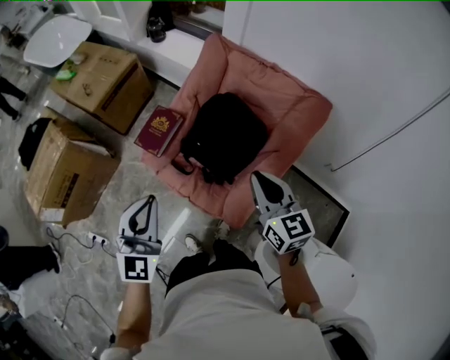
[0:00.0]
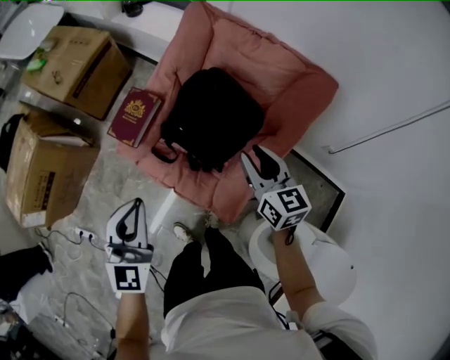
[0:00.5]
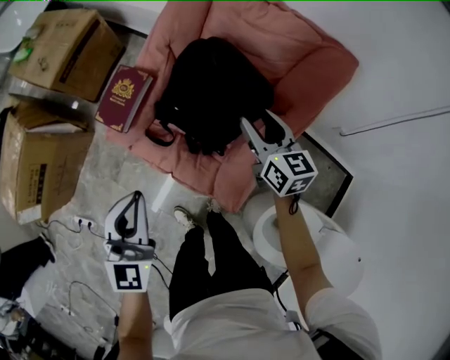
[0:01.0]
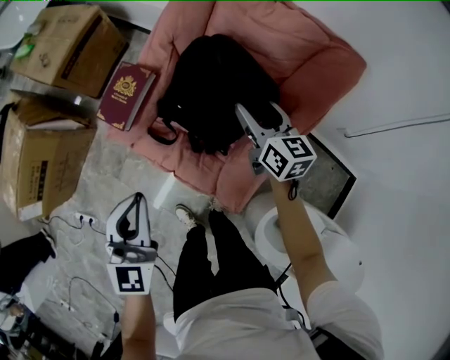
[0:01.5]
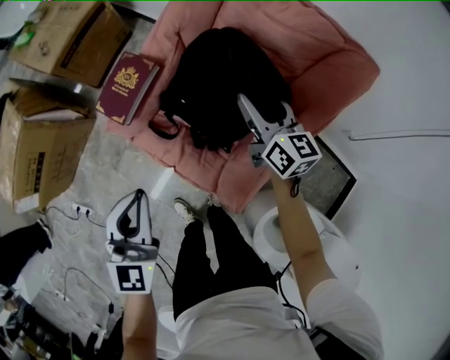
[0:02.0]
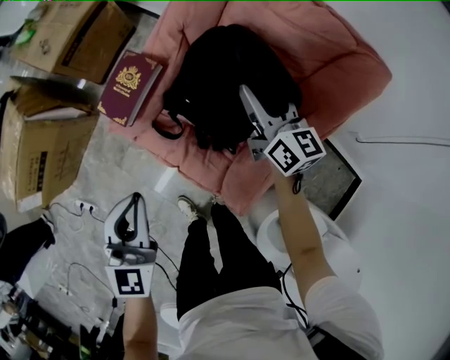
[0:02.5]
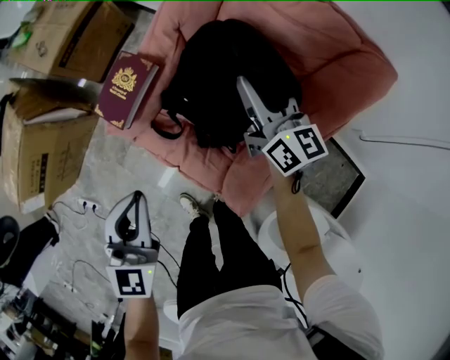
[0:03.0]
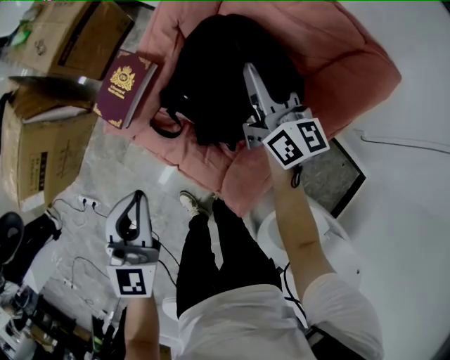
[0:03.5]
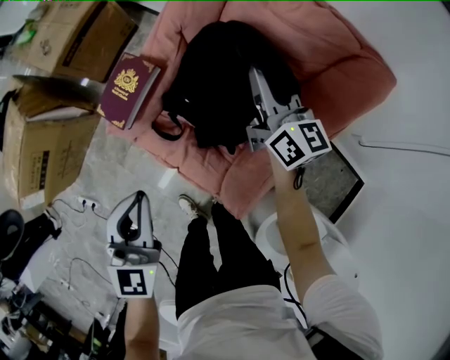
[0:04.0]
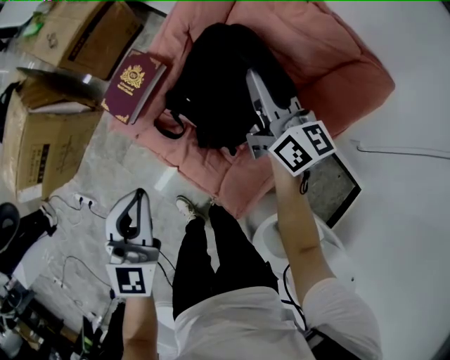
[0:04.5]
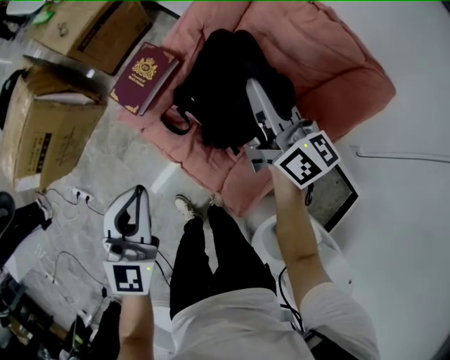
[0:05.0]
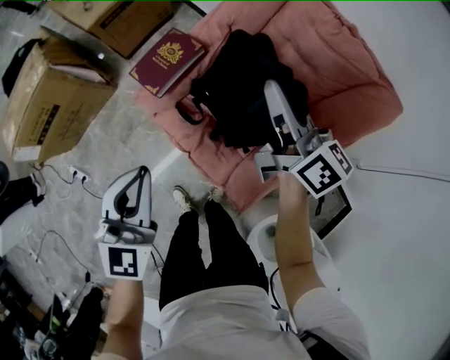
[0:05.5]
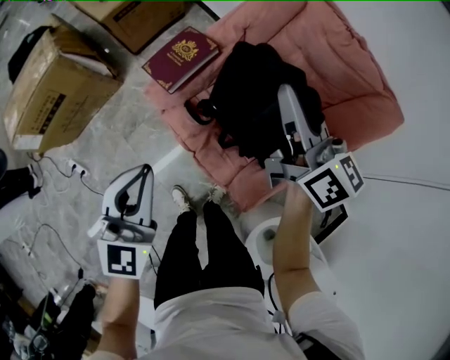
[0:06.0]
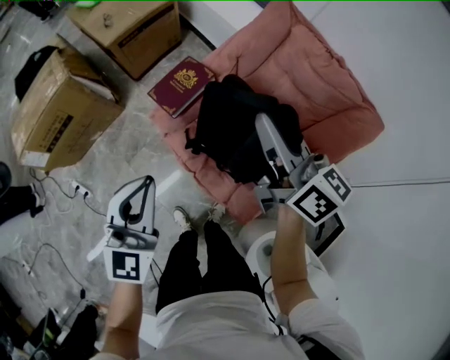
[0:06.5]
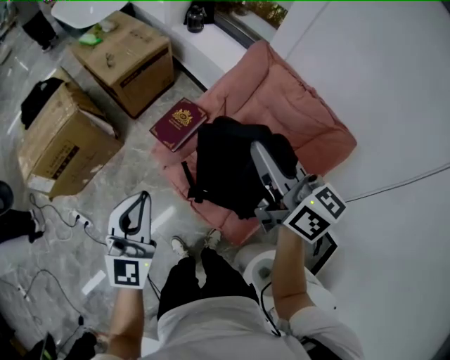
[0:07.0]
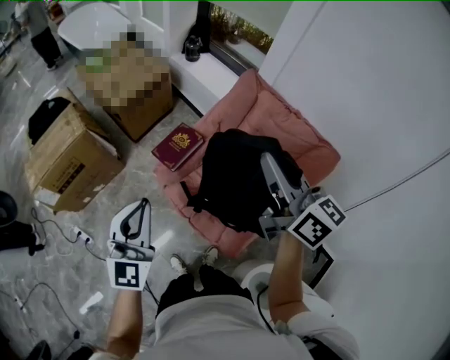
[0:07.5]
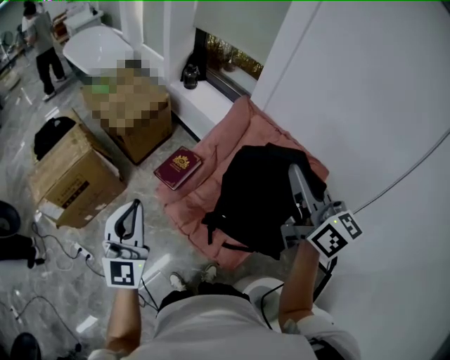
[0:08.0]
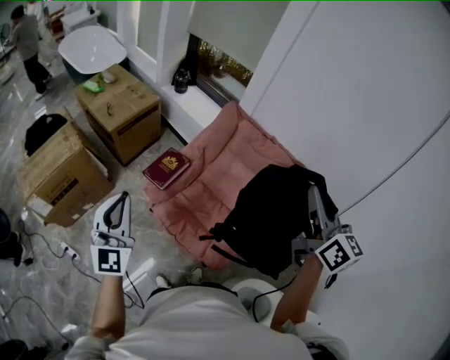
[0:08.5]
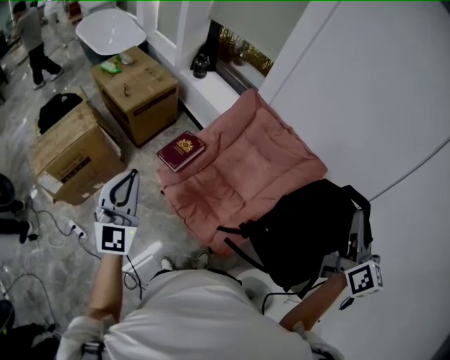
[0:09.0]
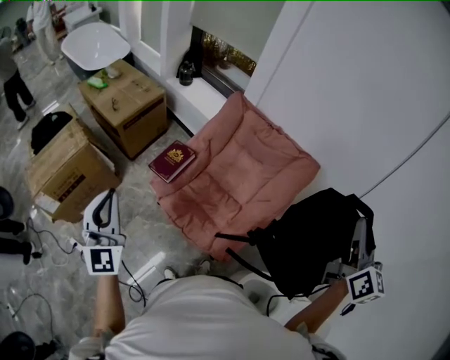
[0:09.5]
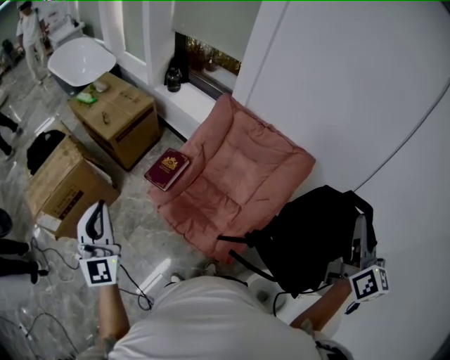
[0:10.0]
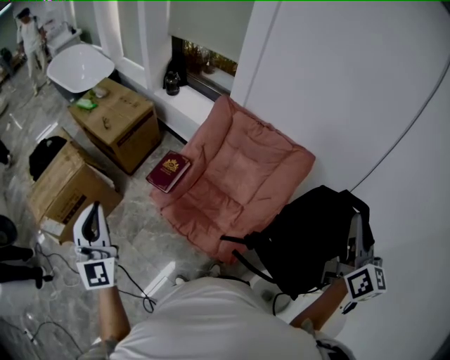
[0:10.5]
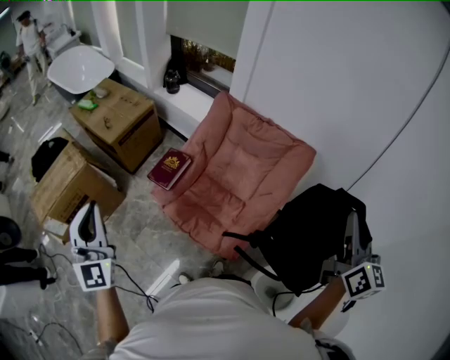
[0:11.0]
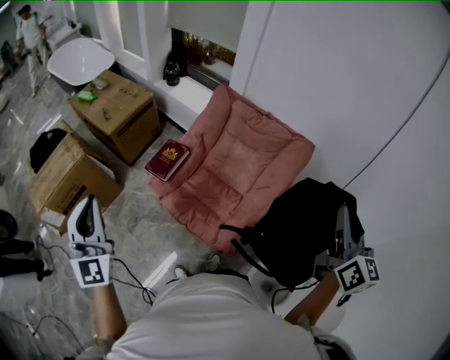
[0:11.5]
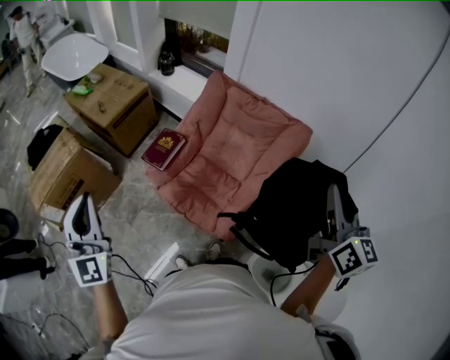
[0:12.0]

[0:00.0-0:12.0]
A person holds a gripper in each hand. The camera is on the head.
0:00.0 to 0:02.0: The right gripper travels downward and forward by some 30 cm, and opens its fingers. The left gripper moves downward, about 15 cm.
0:02.0 to 0:04.0: The right gripper shifts roughly 5 cm forward, and closes its fingers.
0:04.0 to 0:06.0: The left gripper heads to the left and backward, covering about 10 cm. Meanwhile the right gripper travels to the left, upward and backward by about 20 cm.
0:06.0 to 0:08.0: The right gripper heads upward and backward, covering approximately 35 cm. Meanwhile the left gripper goes some 20 cm upward, and swivels about 20 degrees.
0:08.0 to 0:10.0: The left gripper shifts some 5 cm to the left. The right gripper moves to the right and backward, about 25 cm, and changes its angle by roughly 40 degrees.
0:10.0 to 0:12.0: The right gripper ends up roughly 5 cm from where it was. The left gripper shifts by some 5 cm.

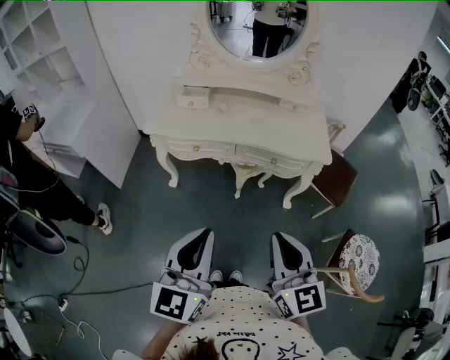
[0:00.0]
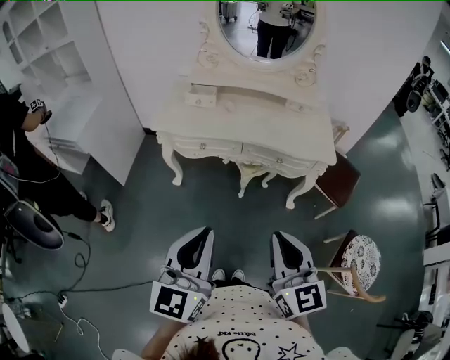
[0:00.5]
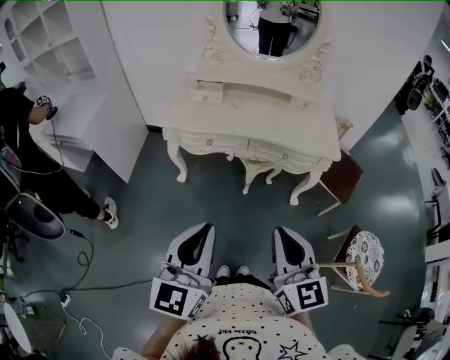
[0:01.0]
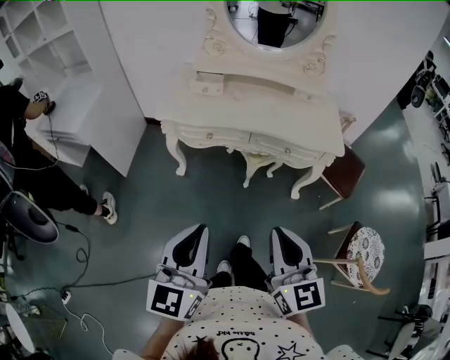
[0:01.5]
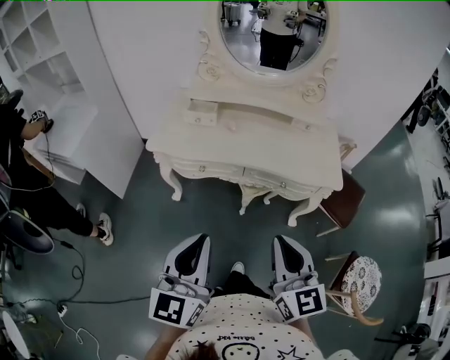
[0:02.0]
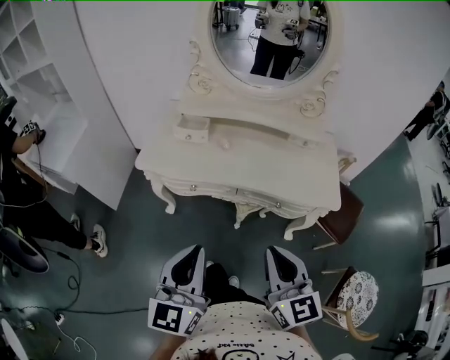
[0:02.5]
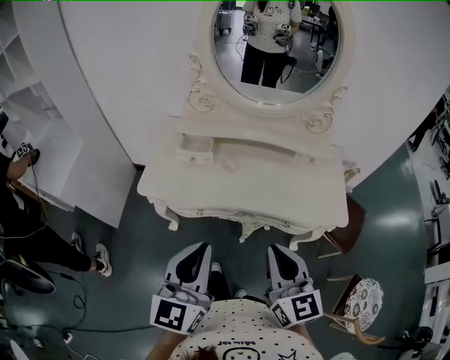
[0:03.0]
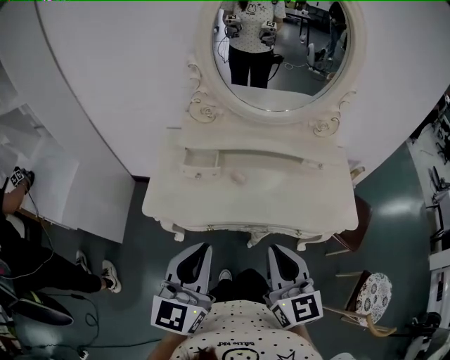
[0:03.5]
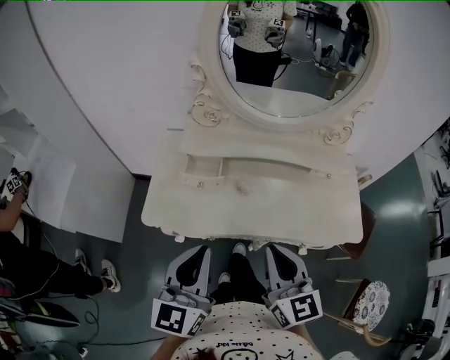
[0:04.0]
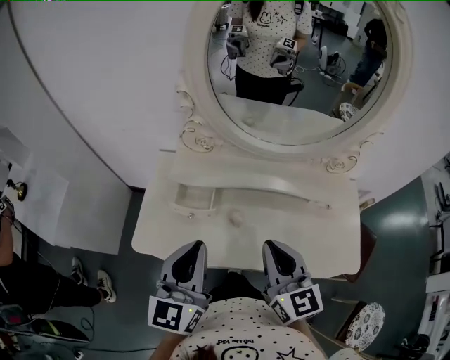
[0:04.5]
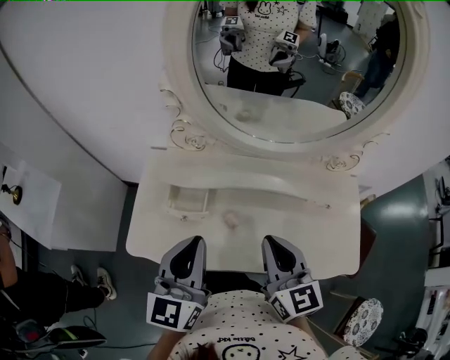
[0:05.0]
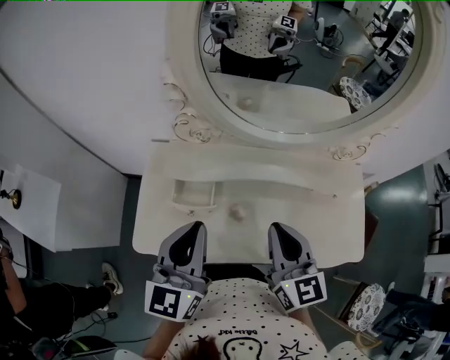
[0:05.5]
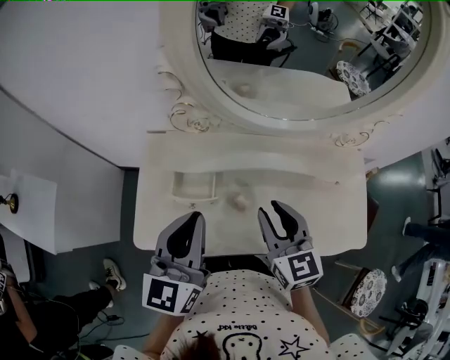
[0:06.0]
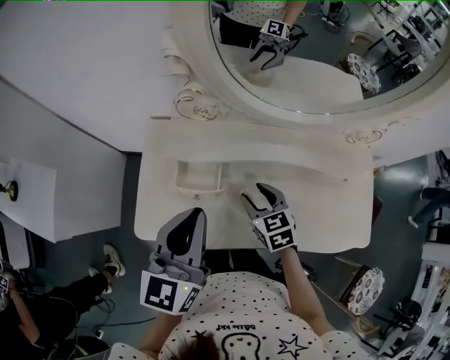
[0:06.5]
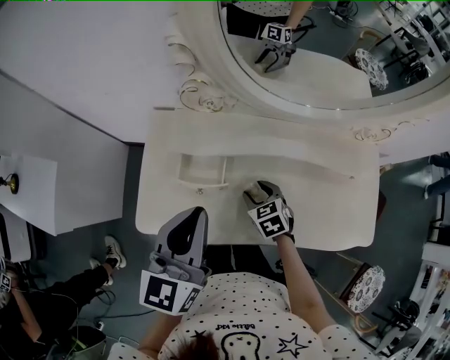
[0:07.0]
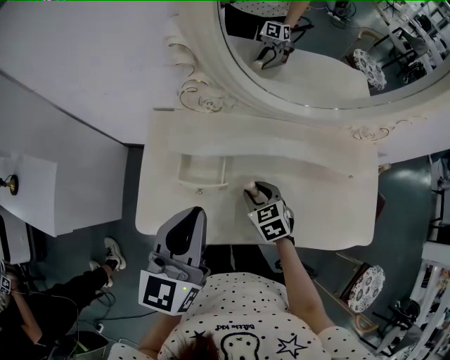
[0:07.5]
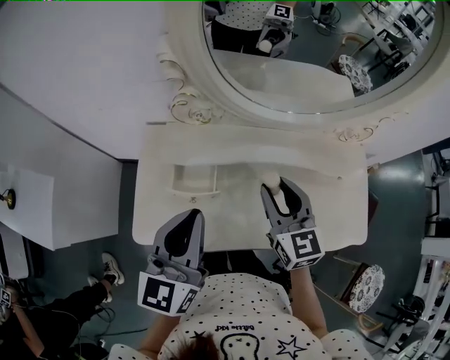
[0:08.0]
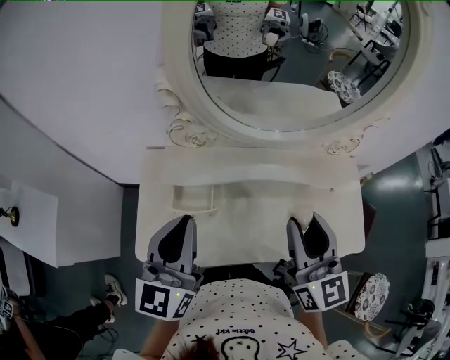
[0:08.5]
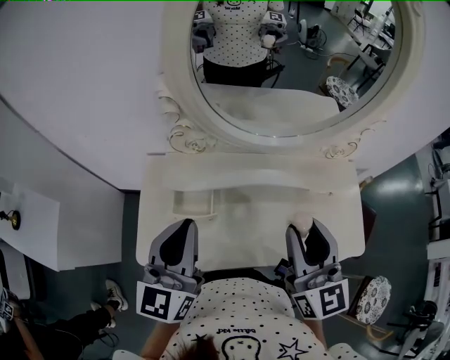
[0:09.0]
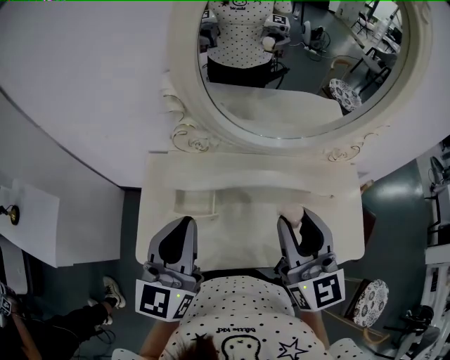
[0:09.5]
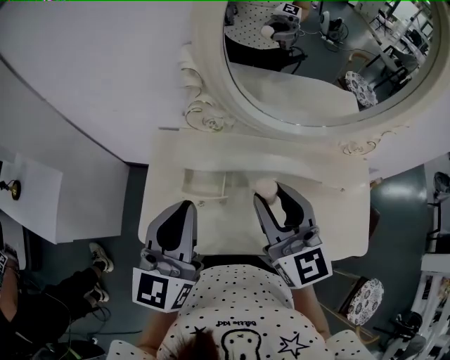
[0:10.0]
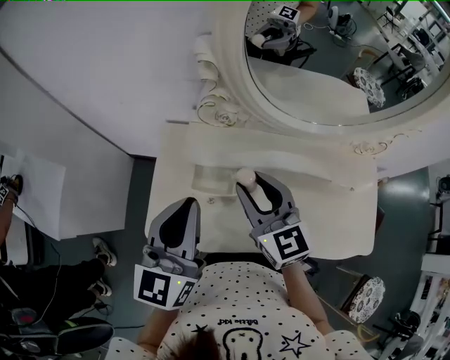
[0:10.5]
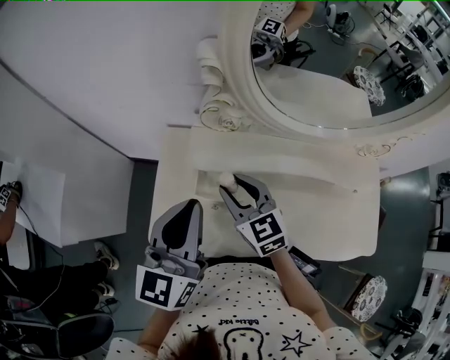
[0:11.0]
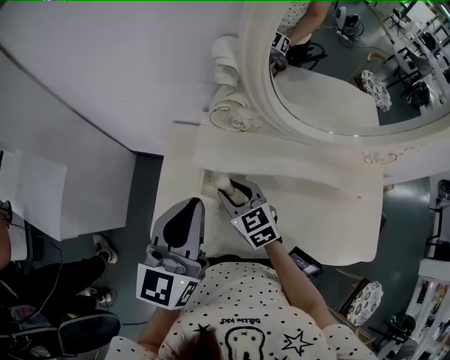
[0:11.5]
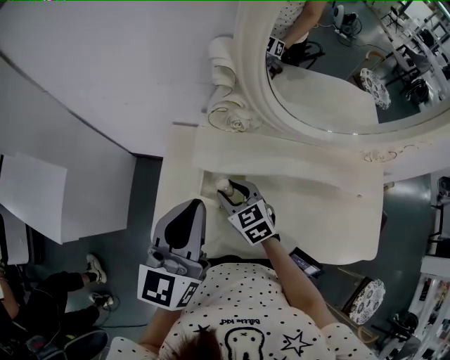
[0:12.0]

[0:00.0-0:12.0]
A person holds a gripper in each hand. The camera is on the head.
0:00.0 to 0:02.0: Both grippers move forward, approximately 10 cm.
0:02.0 to 0:04.0: Both grippers travel together forward, roughly 30 cm.
0:04.0 to 0:06.0: Both grippers move forward, roughly 20 cm. The right gripper opens up.
0:06.0 to 0:08.0: The right gripper travels downward and back again, some 25 cm each way.
0:08.0 to 0:10.0: The right gripper is displaced upward and to the left by about 10 cm.
0:10.0 to 0:12.0: The left gripper moves roughly 5 cm; the right gripper is displaced downward and to the left by some 25 cm, and tilts its fingers roughly 30 degrees downward.

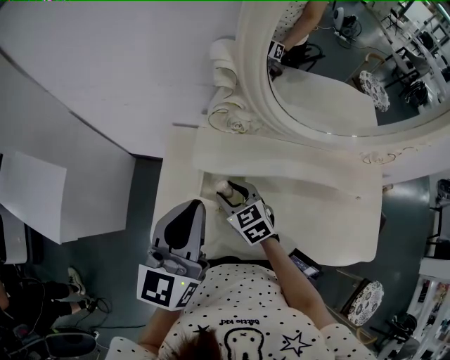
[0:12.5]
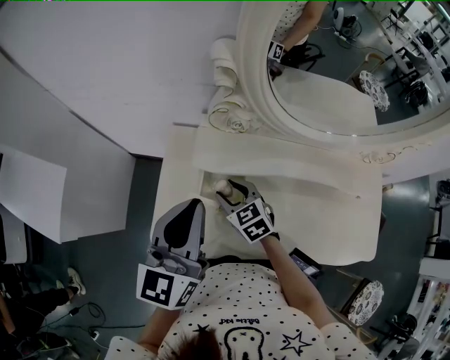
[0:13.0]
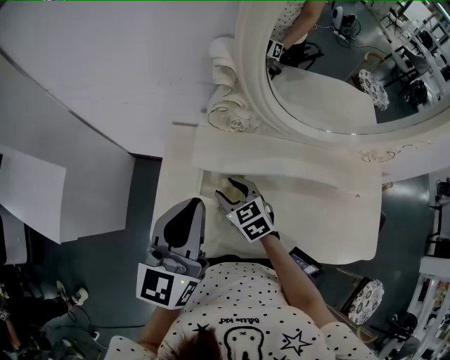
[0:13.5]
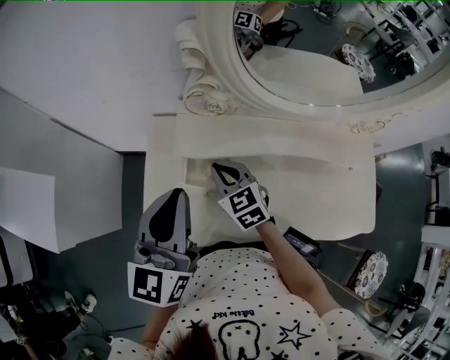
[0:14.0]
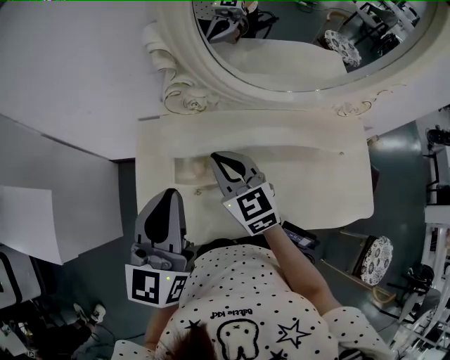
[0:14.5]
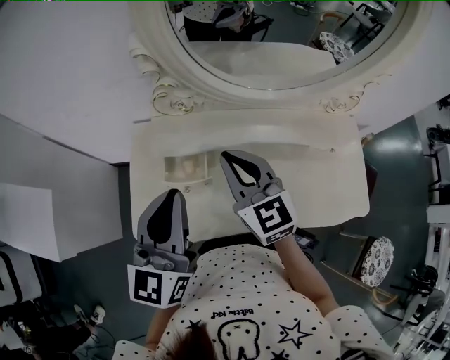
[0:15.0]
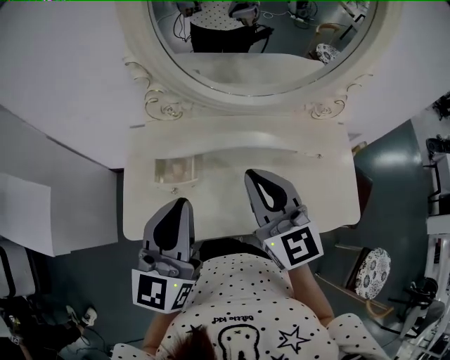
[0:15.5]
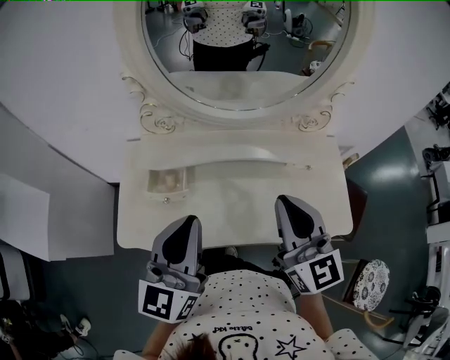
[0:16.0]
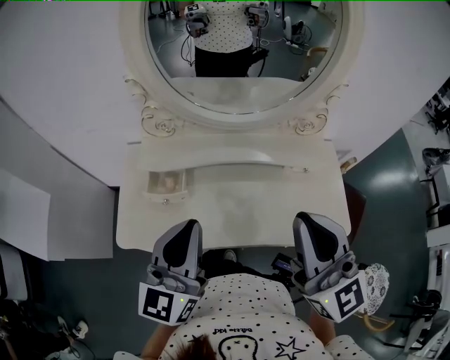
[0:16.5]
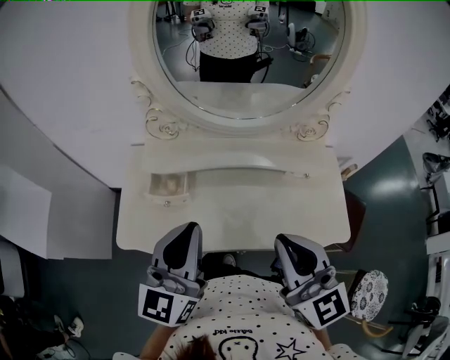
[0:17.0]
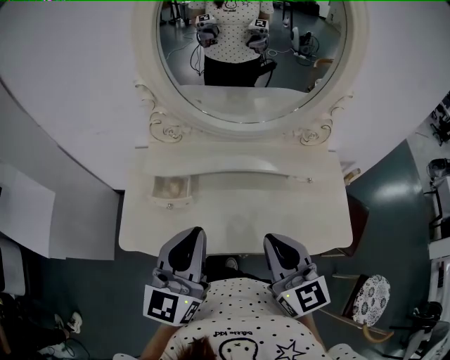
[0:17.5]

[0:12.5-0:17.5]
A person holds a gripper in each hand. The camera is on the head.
0:12.5 to 0:15.0: The right gripper moves upward and to the right, roughly 20 cm, changes its angle by about 30 degrees, and closes its fingers. Meanwhile the left gripper moves to the right, about 5 cm.
0:15.0 to 0:17.5: The right gripper heads backward and to the right, covering approximately 25 cm; the left gripper goes roughly 15 cm to the right and backward.
